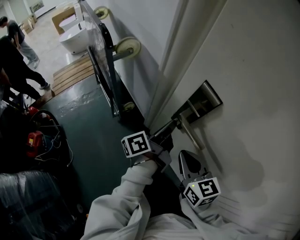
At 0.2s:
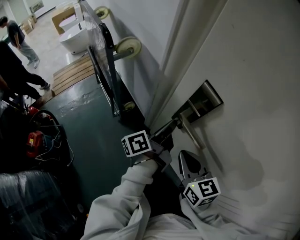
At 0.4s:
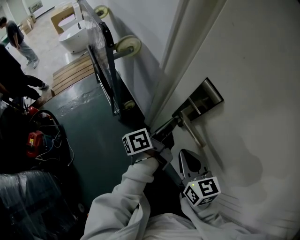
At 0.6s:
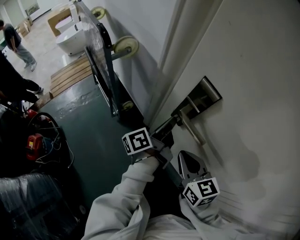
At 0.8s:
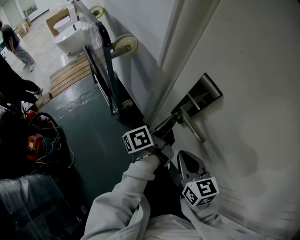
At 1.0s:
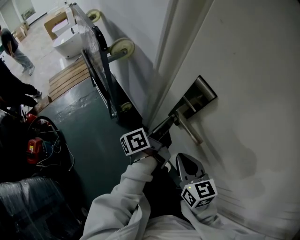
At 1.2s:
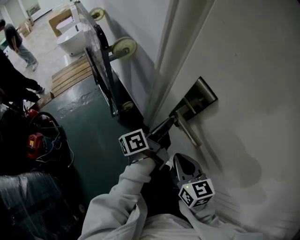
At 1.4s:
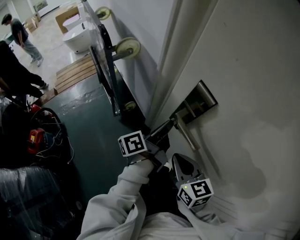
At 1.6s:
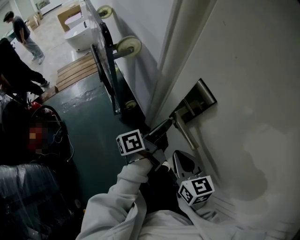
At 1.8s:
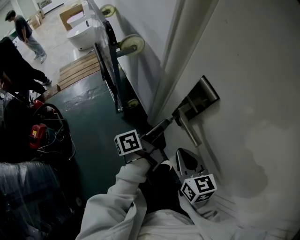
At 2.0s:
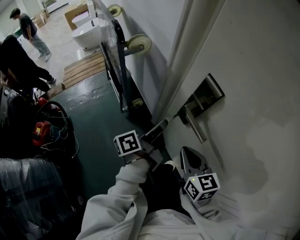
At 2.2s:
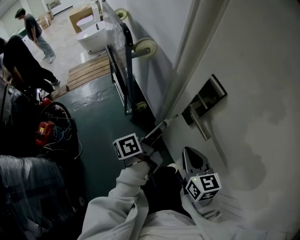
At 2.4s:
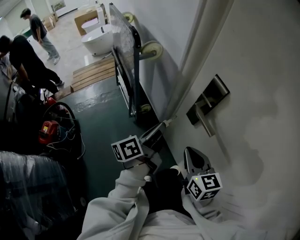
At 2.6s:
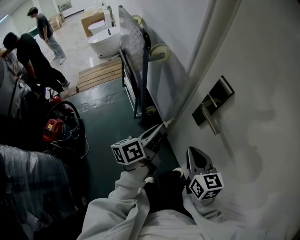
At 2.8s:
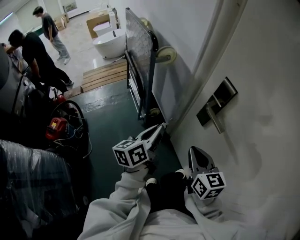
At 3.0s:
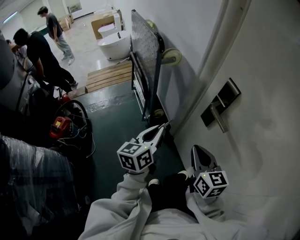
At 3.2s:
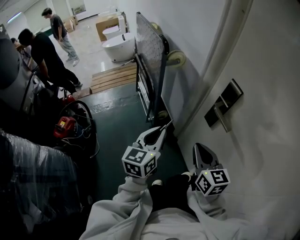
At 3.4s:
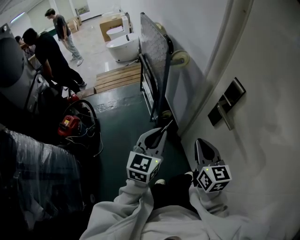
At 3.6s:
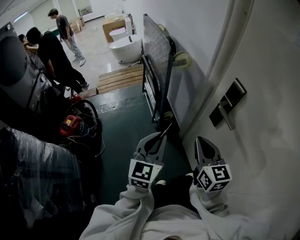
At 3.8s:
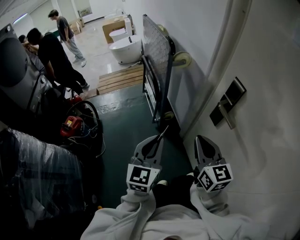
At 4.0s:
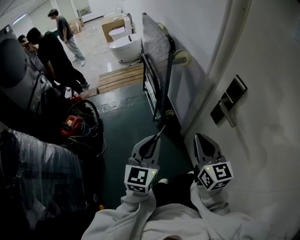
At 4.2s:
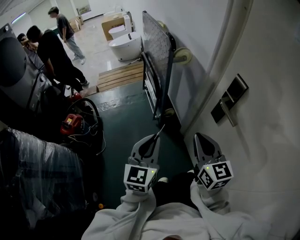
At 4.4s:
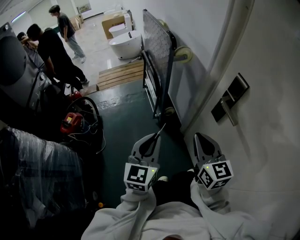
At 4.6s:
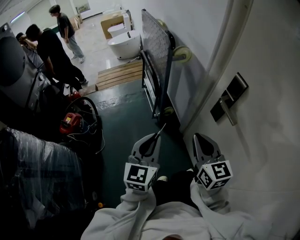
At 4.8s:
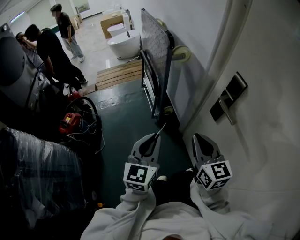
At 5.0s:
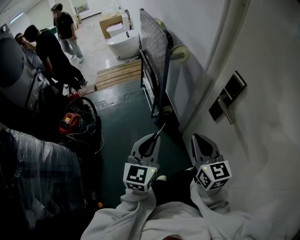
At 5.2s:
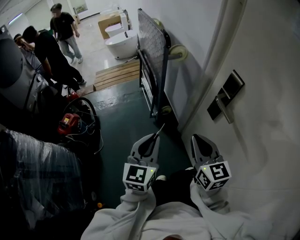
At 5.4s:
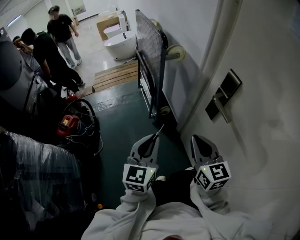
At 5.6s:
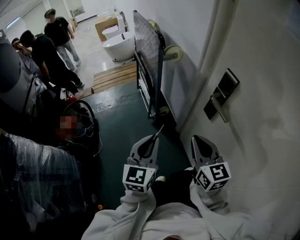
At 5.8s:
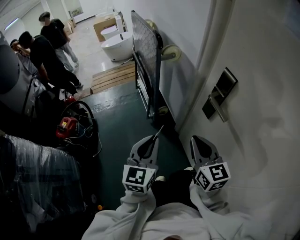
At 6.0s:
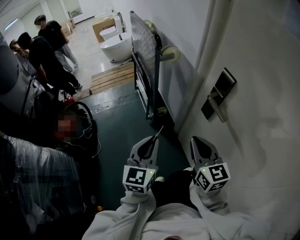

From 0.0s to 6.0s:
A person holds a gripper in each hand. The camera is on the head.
From 0.0s to 1.6s: There are only small adjustments of the grippers.
From 1.6s to 3.0s: The left gripper heads to the left and backward, covering about 20 cm, and rolls clockwise, seen from behind, by about 50 degrees; the right gripper is displaced to the left and backward by some 10 cm.
From 3.0s to 4.4s: The left gripper goes roughly 10 cm backward and to the left, and swivels approximately 30 degrees. Meanwhile the right gripper moves approximately 5 cm.
From 4.4s to 6.0s: The grippers stay close to where they were, moving slightly.

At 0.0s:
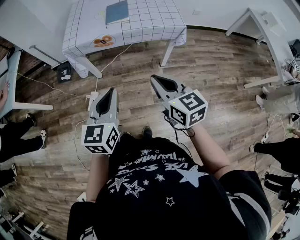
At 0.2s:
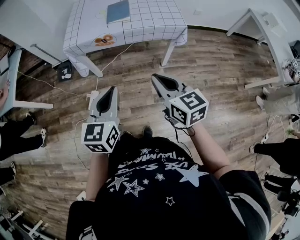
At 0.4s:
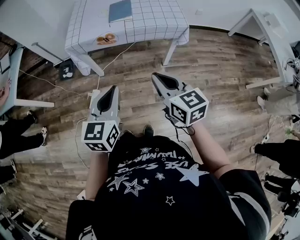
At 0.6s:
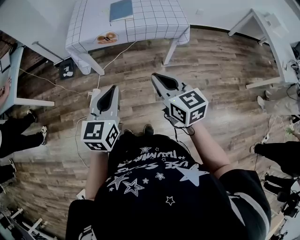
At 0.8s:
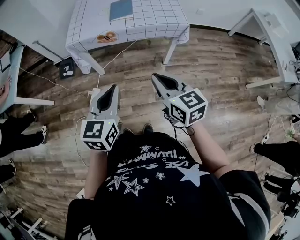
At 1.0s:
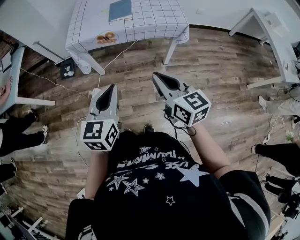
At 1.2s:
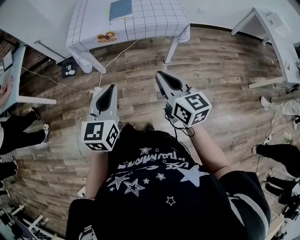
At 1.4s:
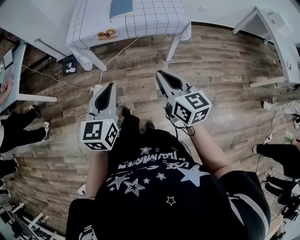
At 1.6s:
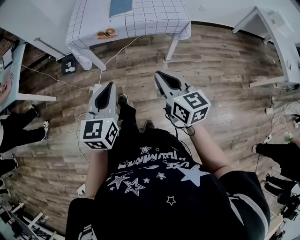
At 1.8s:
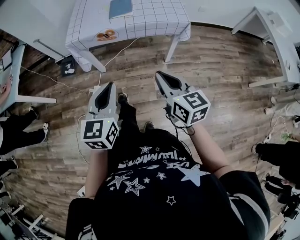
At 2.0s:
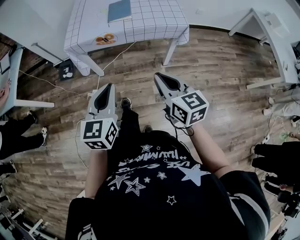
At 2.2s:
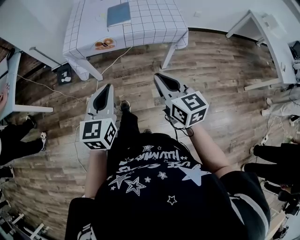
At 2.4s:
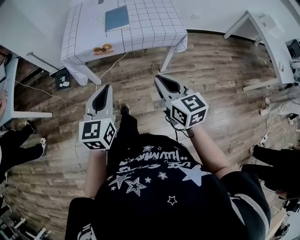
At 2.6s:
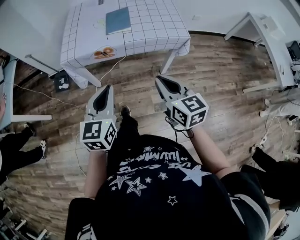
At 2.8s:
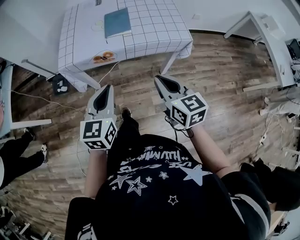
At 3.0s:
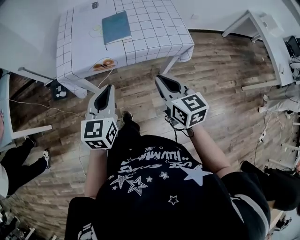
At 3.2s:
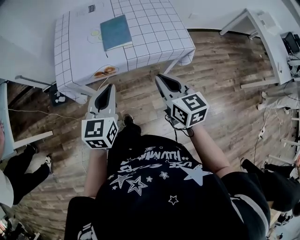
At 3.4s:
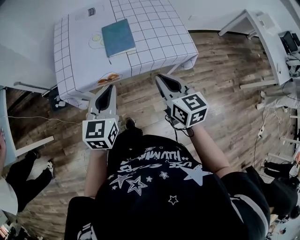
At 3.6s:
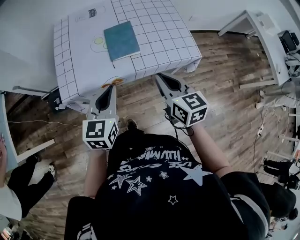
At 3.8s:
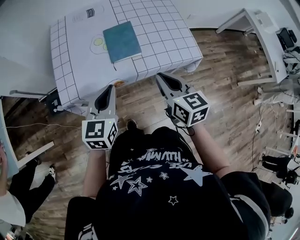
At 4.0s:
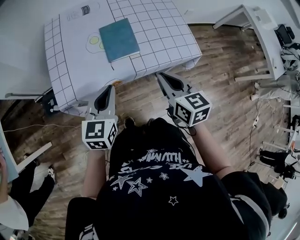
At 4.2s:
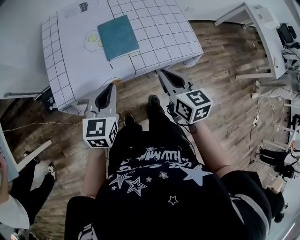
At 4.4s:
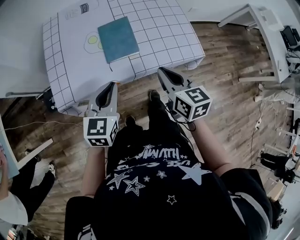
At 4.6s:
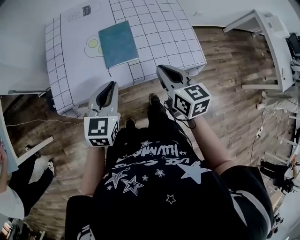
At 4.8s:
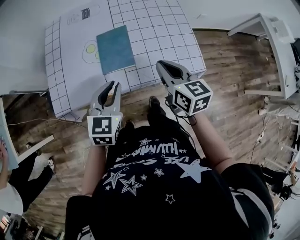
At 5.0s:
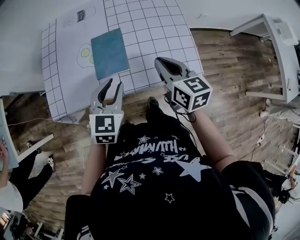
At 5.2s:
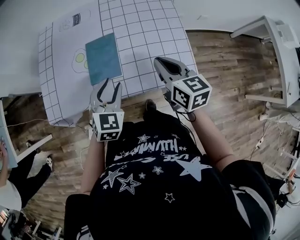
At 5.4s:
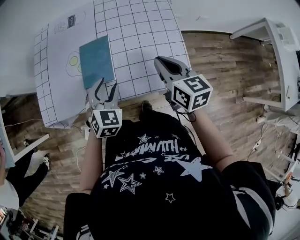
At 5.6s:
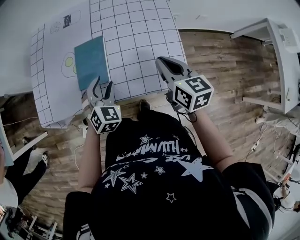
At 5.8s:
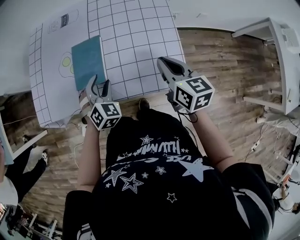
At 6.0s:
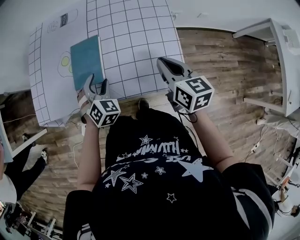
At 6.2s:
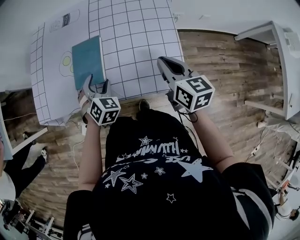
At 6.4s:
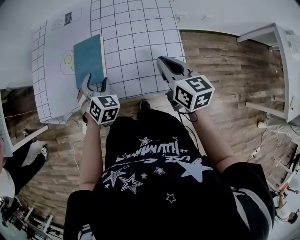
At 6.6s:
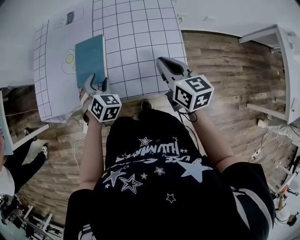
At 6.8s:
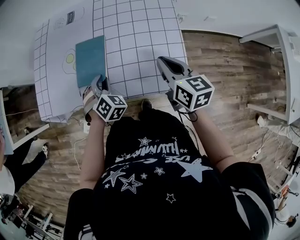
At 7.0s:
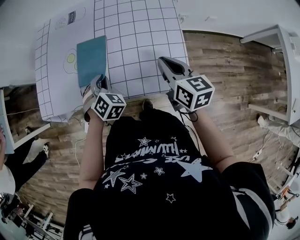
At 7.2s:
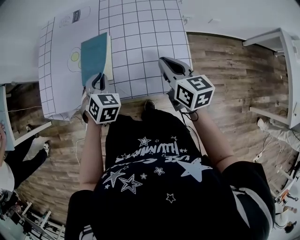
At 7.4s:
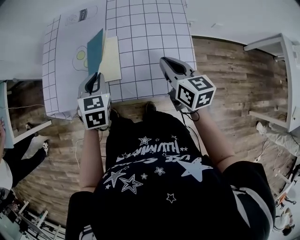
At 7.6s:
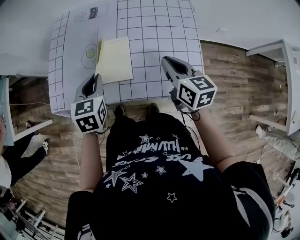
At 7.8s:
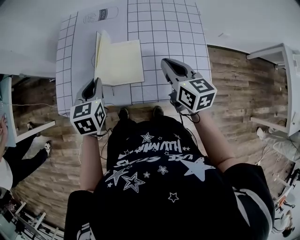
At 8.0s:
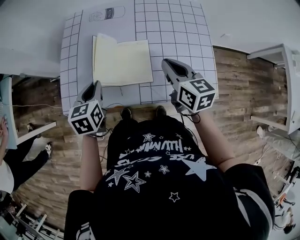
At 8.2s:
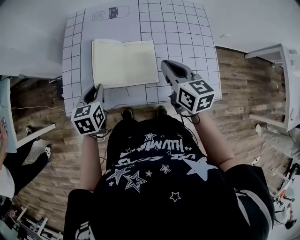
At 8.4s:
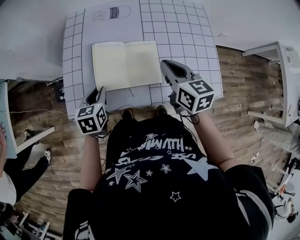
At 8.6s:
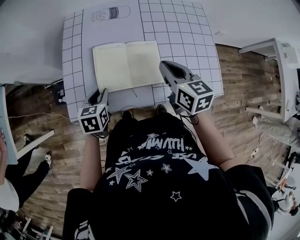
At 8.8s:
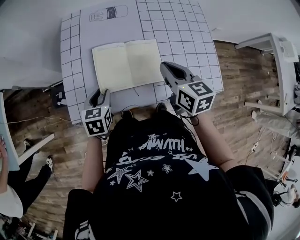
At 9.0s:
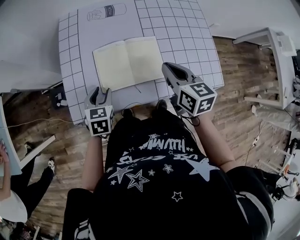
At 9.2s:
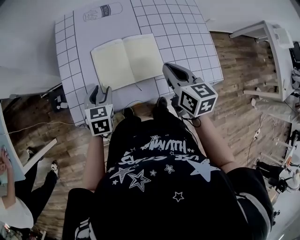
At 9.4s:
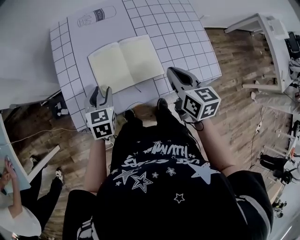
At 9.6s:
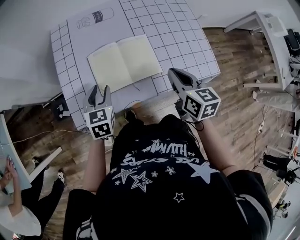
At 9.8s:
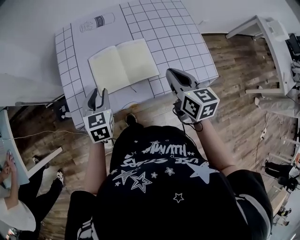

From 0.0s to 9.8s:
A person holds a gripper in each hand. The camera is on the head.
From 0.0s to 1.4s: There are only small adjustments of the grippers.
From 1.4s to 2.8s: The two grippers go about 15 cm forward.
From 2.8s to 4.2s: Both grippers travel together forward, roughly 20 cm.
From 4.2s to 5.6s: The right gripper goes some 25 cm forward and to the right. Meanwhile the left gripper shifts some 20 cm to the right, forward and downward, rotates some 50 degrees, and opens.
From 5.6s to 7.0s: The left gripper changes its angle by some 20 degrees, and closes up.
From 7.0s to 8.4s: The two grippers go some 20 cm to the left. The left gripper twists some 50 degrees counterclockwise, seen from behind.
From 8.4s to 9.8s: The right gripper shifts some 10 cm backward.

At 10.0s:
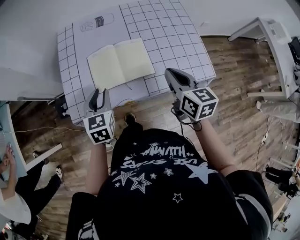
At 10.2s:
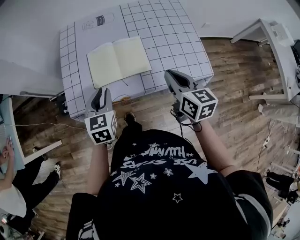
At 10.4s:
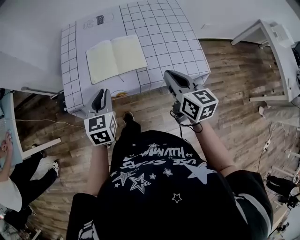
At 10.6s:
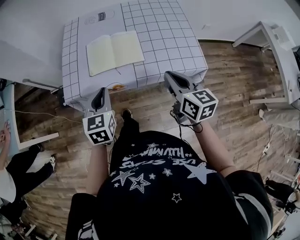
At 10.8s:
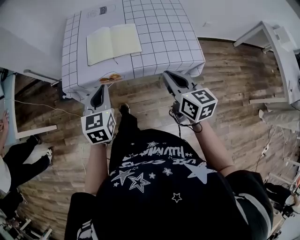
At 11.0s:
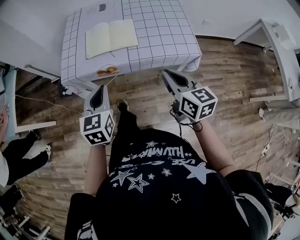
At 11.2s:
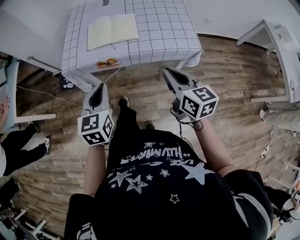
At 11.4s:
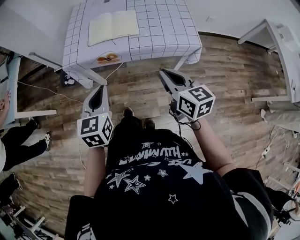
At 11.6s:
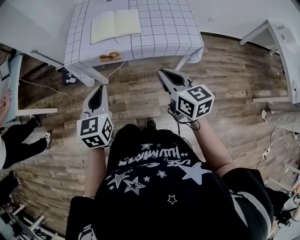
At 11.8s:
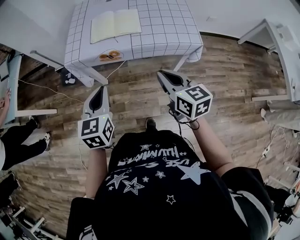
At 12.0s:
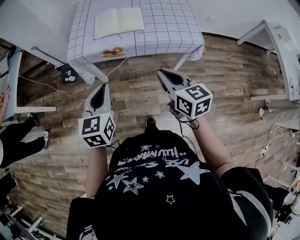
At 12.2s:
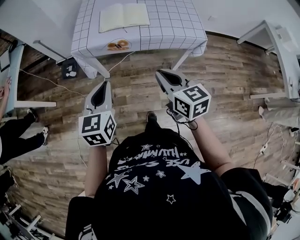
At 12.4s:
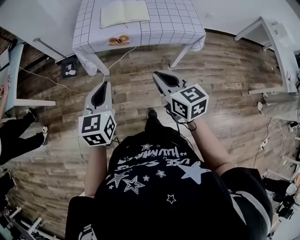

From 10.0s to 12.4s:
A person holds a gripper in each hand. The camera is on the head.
From 10.0s to 11.2s: Both grippers move backward, about 20 cm. The left gripper closes up.
From 11.2s to 12.4s: The left gripper heads backward and to the left, covering some 15 cm, while the right gripper heads to the left and backward, covering roughly 20 cm.

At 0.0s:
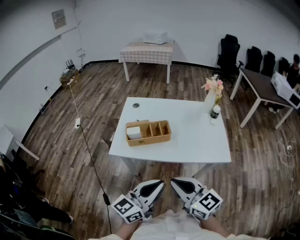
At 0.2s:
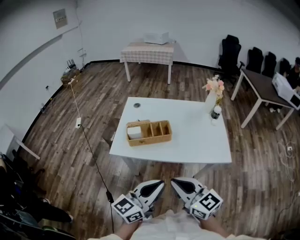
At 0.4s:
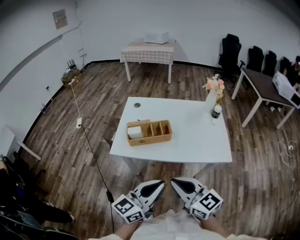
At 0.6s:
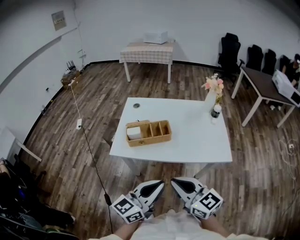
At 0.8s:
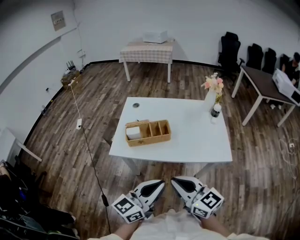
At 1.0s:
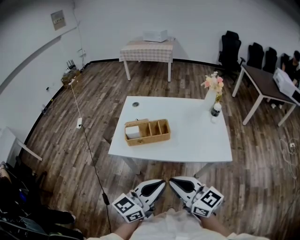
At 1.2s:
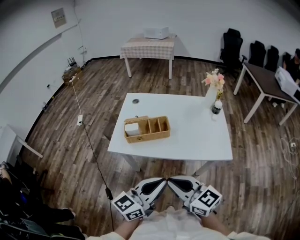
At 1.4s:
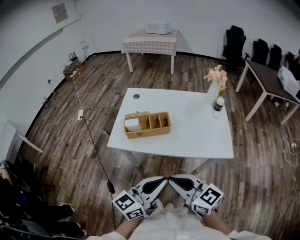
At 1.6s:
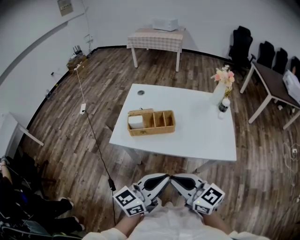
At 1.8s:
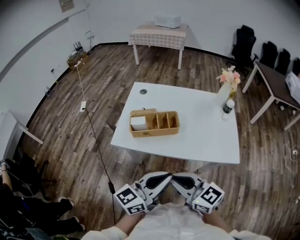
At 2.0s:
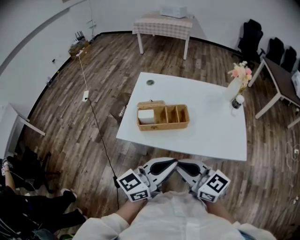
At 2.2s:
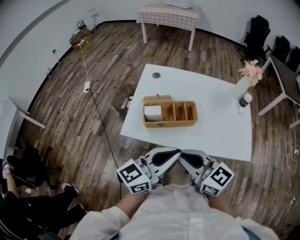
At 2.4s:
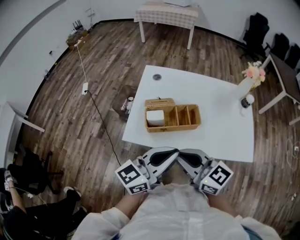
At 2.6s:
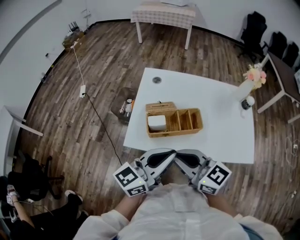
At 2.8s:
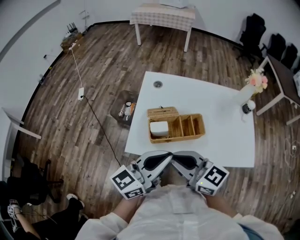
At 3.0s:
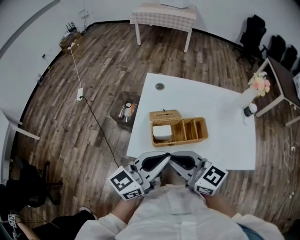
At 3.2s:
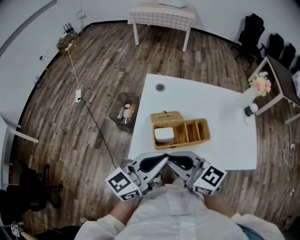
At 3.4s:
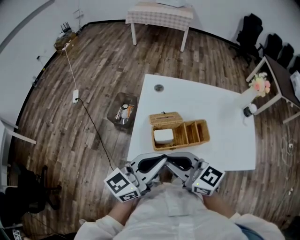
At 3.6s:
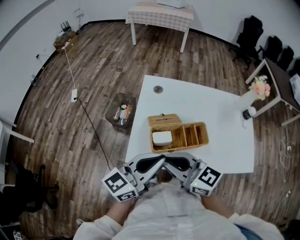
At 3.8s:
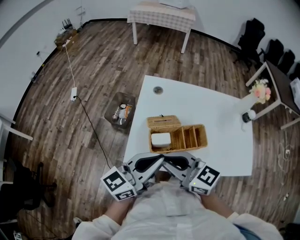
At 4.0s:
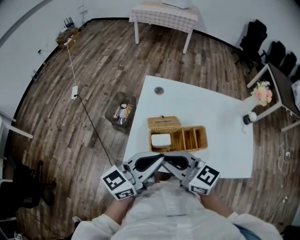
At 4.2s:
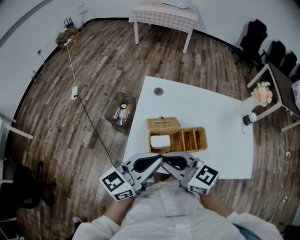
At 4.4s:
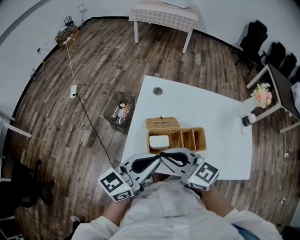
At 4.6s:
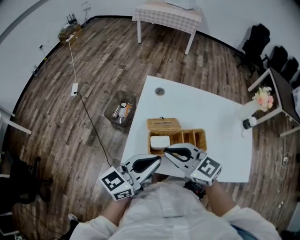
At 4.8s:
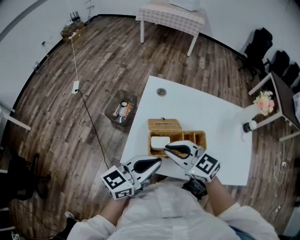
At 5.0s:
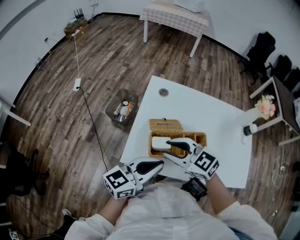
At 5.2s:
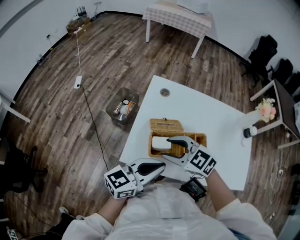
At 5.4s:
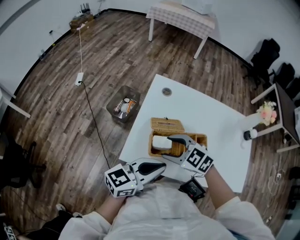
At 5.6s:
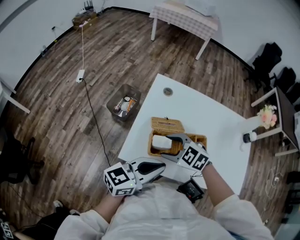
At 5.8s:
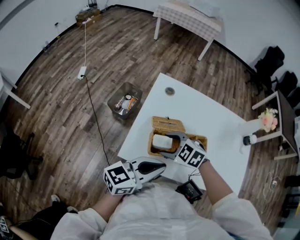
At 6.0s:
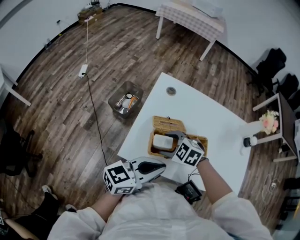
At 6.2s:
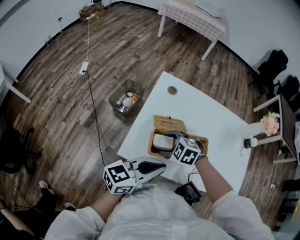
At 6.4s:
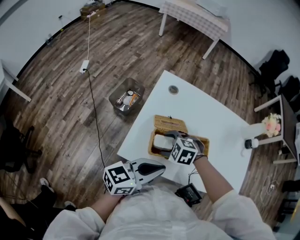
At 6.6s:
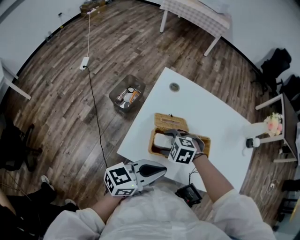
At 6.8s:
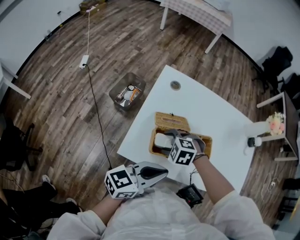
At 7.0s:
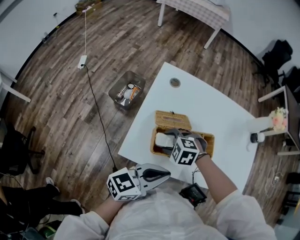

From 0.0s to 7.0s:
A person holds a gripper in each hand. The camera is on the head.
From 0.0s to 1.4s: The grippers stay close to where they were, moving slightly.
From 1.4s to 2.8s: The grippers both shift forward and to the left by approximately 25 cm.
From 2.8s to 4.2s: The two grippers go roughly 10 cm forward.
From 4.2s to 5.6s: The left gripper is displaced downward by about 5 cm; the right gripper shifts some 15 cm downward, tilts its fingers approximately 40 degrees downward, and opens up.
From 5.6s to 7.0s: The right gripper heads downward, covering some 10 cm, and changes its angle by some 20 degrees.
